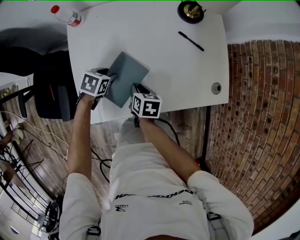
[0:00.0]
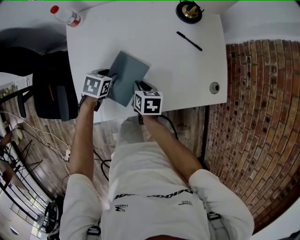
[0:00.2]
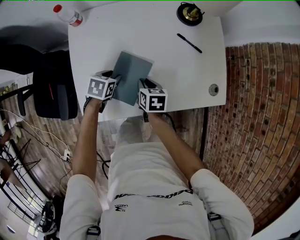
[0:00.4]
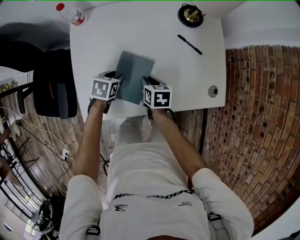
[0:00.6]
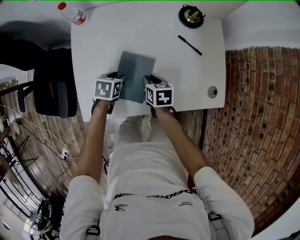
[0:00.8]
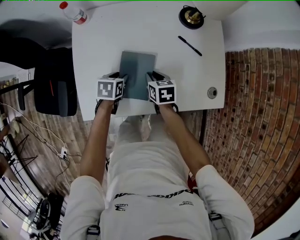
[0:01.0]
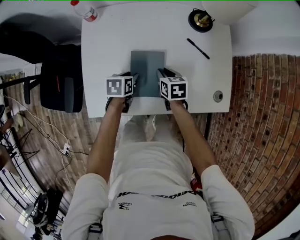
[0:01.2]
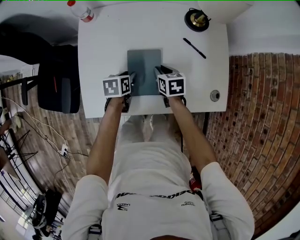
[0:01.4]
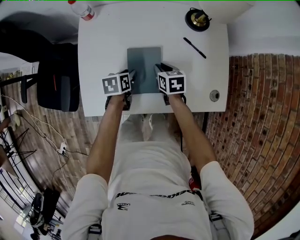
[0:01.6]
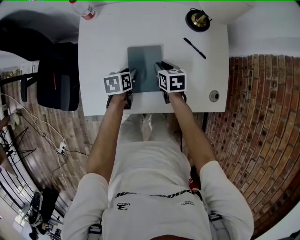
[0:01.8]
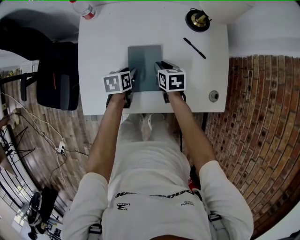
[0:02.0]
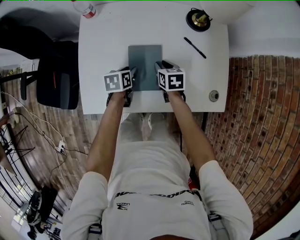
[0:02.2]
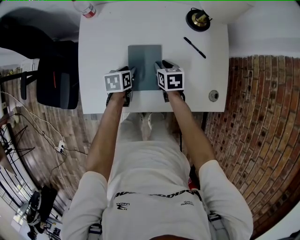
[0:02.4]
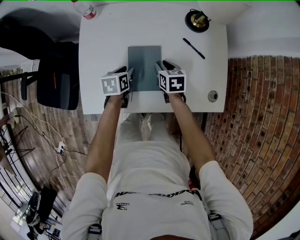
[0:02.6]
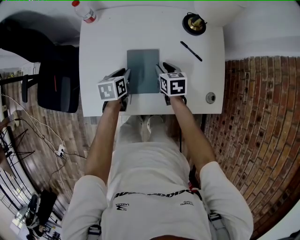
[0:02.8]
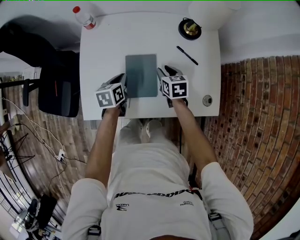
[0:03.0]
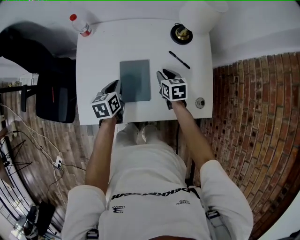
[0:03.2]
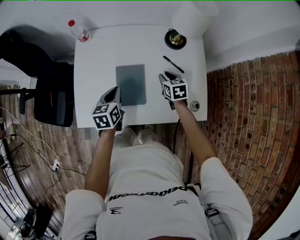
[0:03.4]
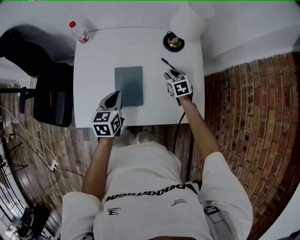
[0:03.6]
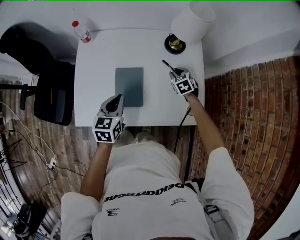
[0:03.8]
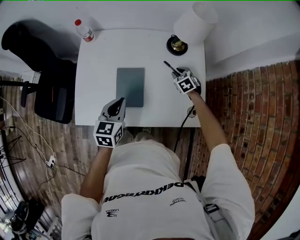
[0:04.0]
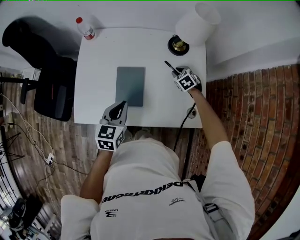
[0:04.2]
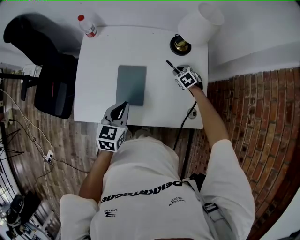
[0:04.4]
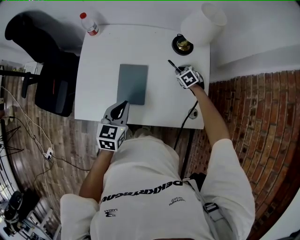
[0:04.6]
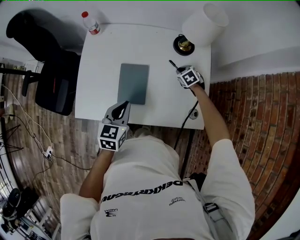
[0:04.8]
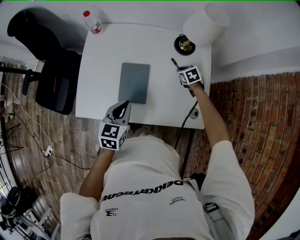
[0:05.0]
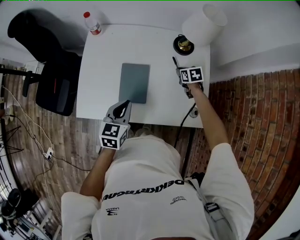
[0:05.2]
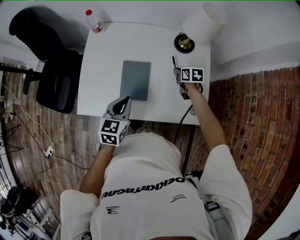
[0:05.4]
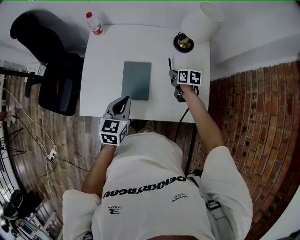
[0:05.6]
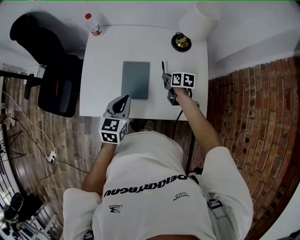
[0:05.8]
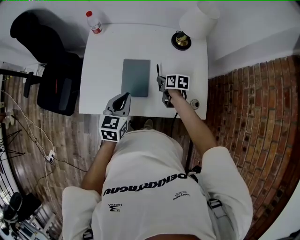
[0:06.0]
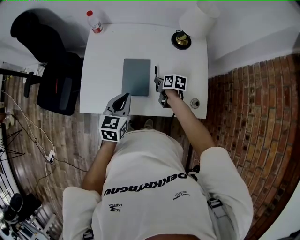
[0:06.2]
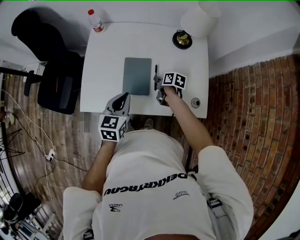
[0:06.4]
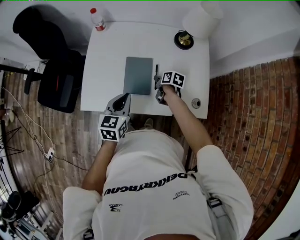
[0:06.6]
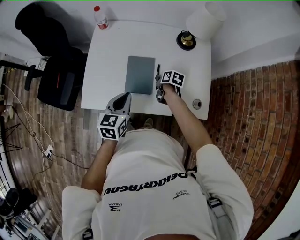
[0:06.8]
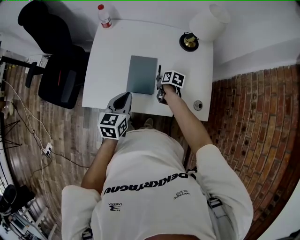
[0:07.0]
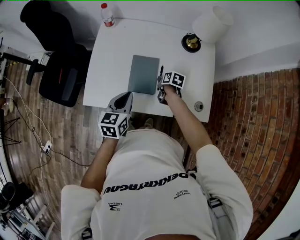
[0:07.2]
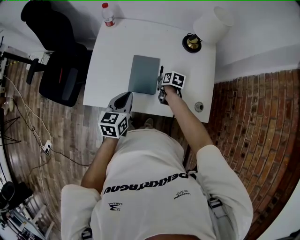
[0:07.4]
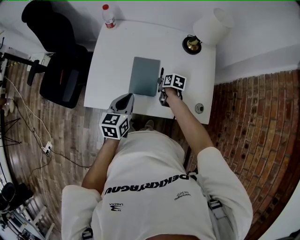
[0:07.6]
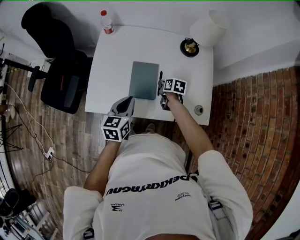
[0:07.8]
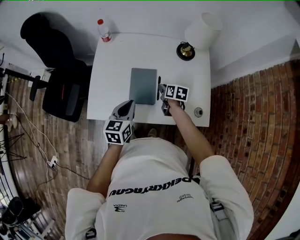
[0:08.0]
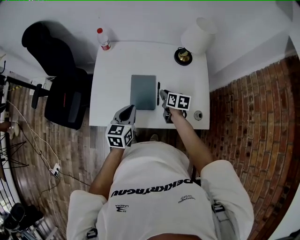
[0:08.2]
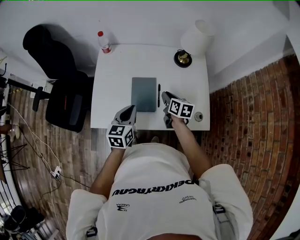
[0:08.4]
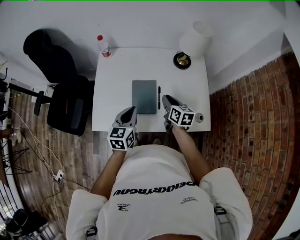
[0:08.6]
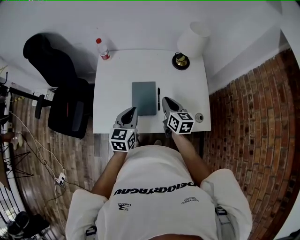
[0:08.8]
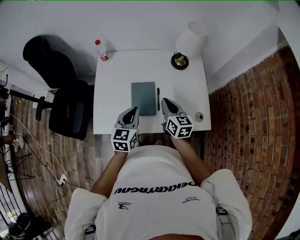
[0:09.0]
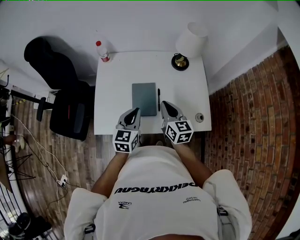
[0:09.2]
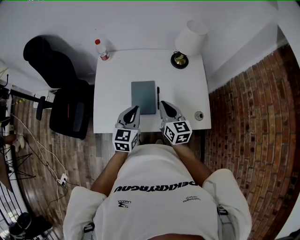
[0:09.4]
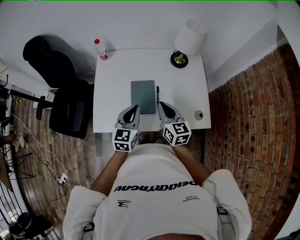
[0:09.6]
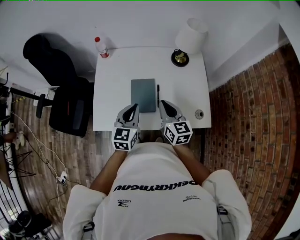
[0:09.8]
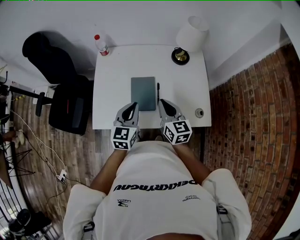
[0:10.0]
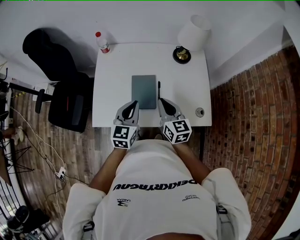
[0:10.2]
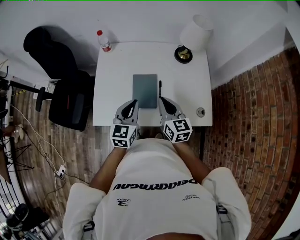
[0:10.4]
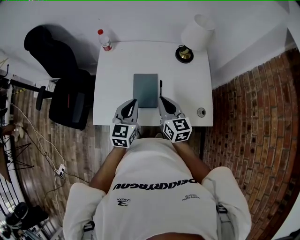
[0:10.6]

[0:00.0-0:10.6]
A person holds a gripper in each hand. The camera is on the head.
0.0 to 1.6 s: The left gripper travels to the right by some 5 cm, and swivels roughly 40 degrees. The right gripper goes about 10 cm forward and to the right, and turns by some 30 degrees.
1.6 to 3.0 s: The right gripper ends up about 5 cm from where it was; the left gripper shifts about 5 cm upward, and closes its fingers.
3.0 to 4.6 s: The right gripper shifts roughly 15 cm to the right and forward, and turns by approximately 40 degrees. Meanwhile the left gripper heads upward, backward and to the right, covering about 15 cm, and swivels some 20 degrees.
4.6 to 6.0 s: The right gripper shifts some 15 cm to the left and backward, and rolls clockwise, seen from behind, by approximately 60 degrees.
6.0 to 7.6 s: The right gripper ends up about 5 cm from where it was.
7.6 to 9.0 s: The right gripper goes about 25 cm upward, and tilts its fingers roughly 40 degrees upward; the left gripper moves upward, about 5 cm.
9.0 to 10.6 s: There are only small adjustments of the grippers.

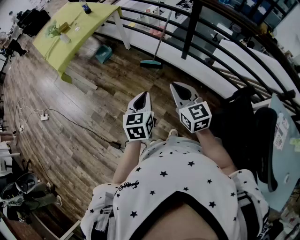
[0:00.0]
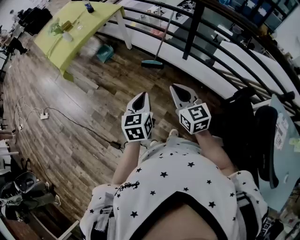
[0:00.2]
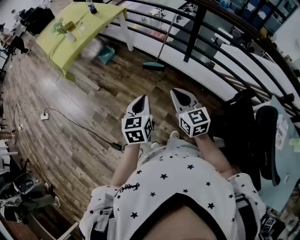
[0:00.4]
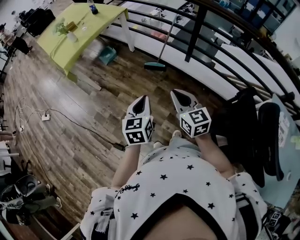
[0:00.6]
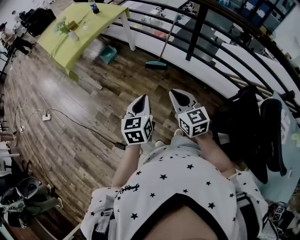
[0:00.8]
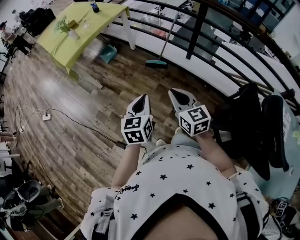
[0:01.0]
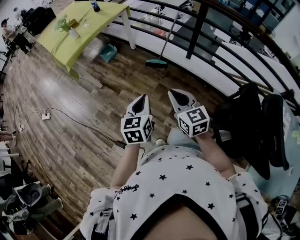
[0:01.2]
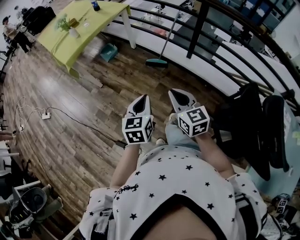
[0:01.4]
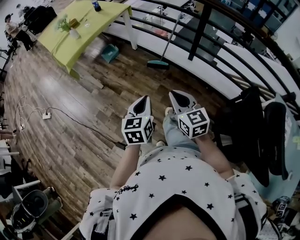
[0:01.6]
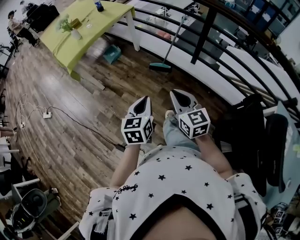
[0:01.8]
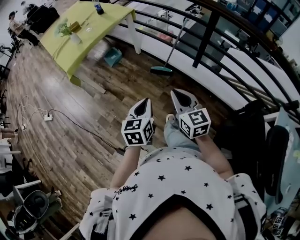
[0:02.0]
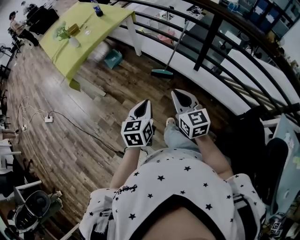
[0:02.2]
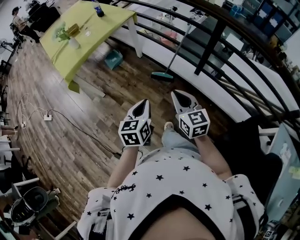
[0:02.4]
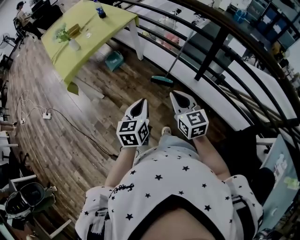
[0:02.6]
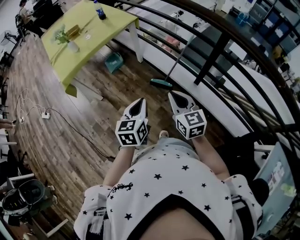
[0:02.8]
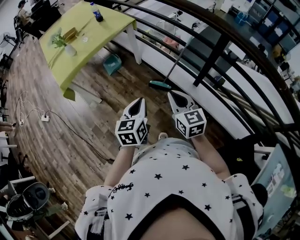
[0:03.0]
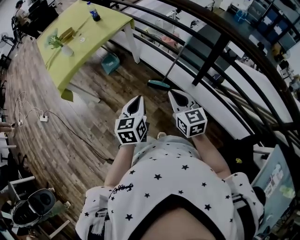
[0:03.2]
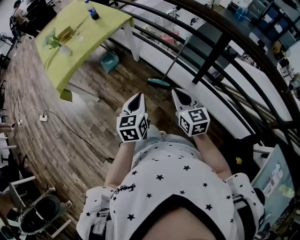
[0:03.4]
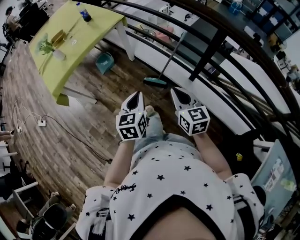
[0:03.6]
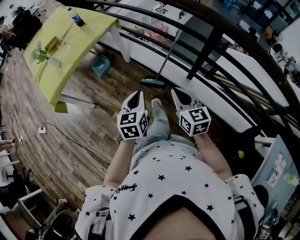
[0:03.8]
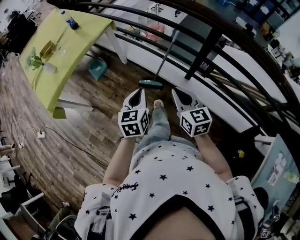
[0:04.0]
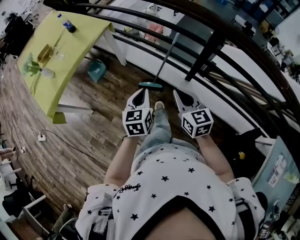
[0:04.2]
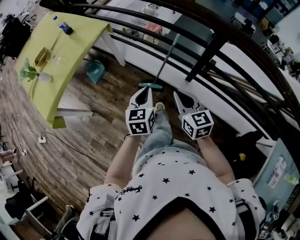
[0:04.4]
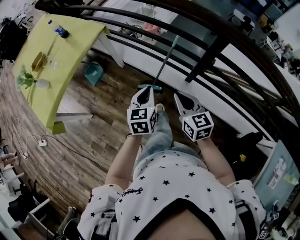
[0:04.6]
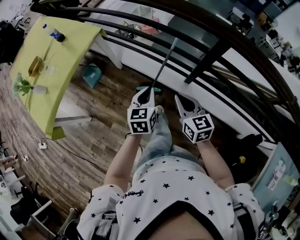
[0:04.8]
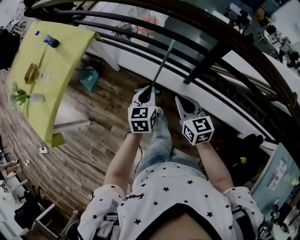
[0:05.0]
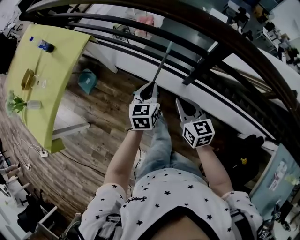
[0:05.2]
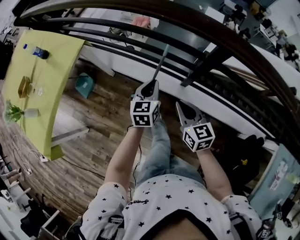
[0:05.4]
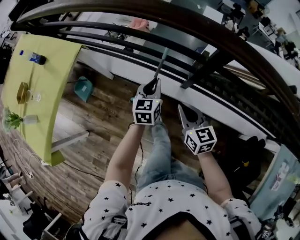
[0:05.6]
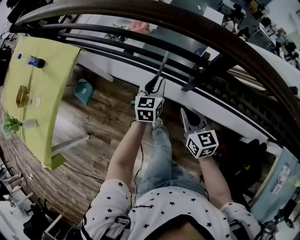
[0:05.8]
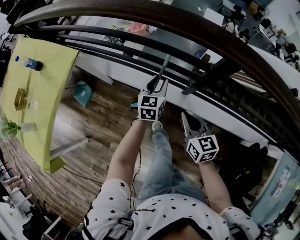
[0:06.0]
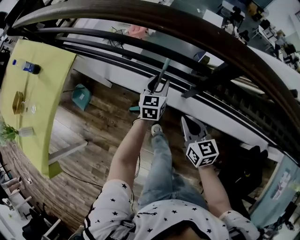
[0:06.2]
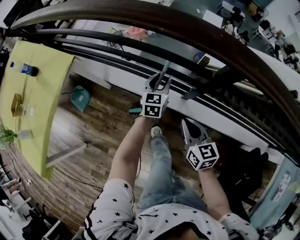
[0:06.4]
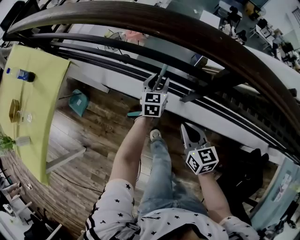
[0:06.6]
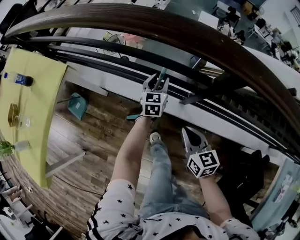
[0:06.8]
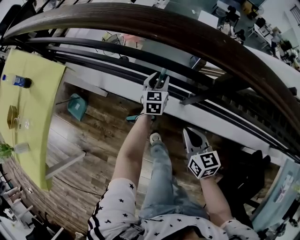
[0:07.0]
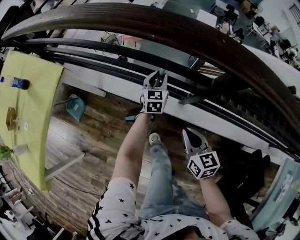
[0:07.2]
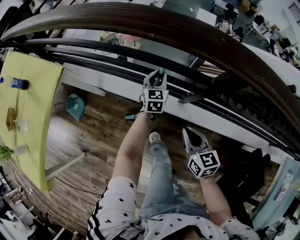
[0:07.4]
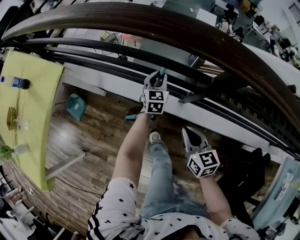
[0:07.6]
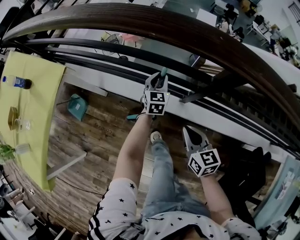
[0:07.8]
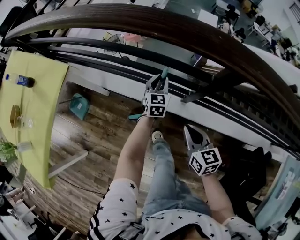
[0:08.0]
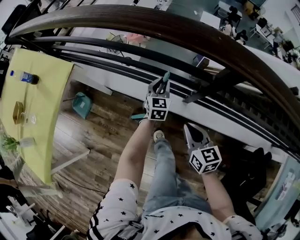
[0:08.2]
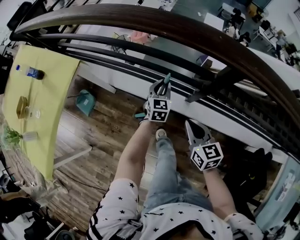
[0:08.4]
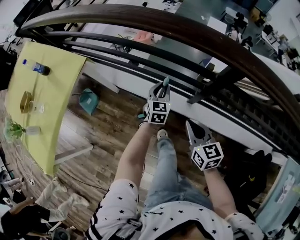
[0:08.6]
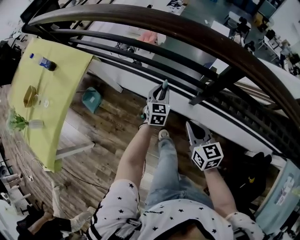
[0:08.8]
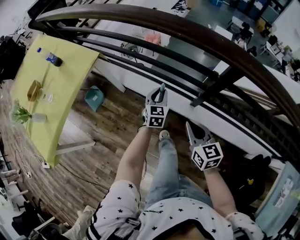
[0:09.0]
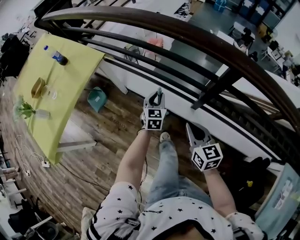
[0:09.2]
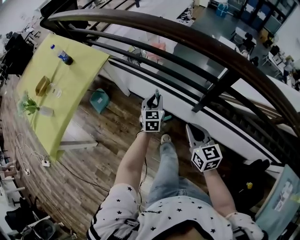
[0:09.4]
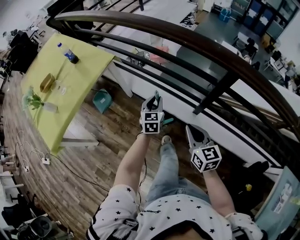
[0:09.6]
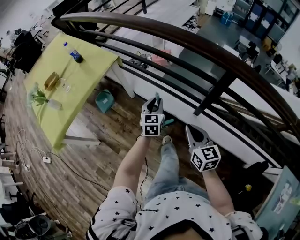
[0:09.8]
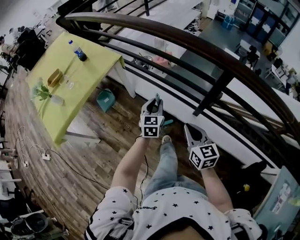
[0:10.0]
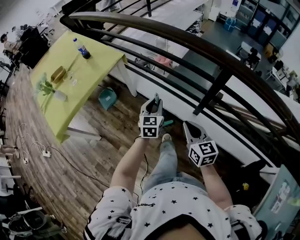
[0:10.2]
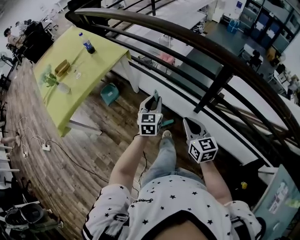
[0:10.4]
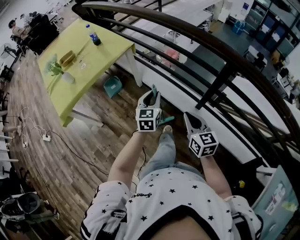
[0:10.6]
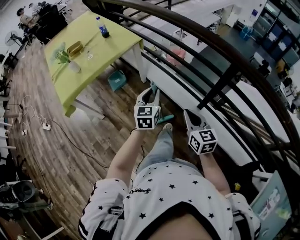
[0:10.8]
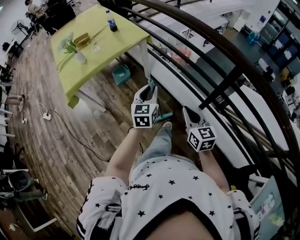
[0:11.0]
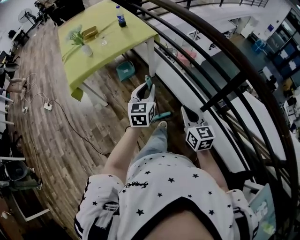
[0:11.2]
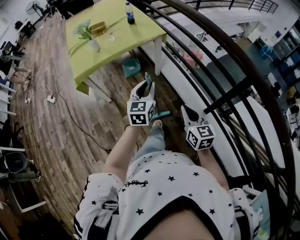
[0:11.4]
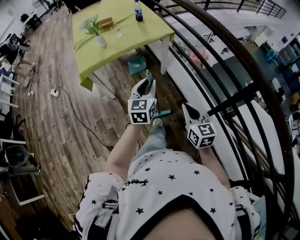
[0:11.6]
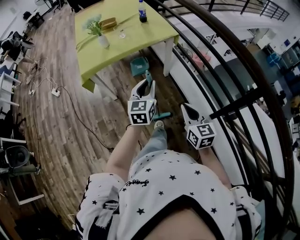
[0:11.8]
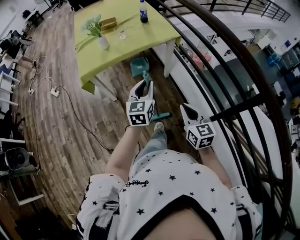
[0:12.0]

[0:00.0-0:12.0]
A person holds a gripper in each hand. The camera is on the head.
0.0 to 1.6 s: The grippers both shift to the left by some 10 cm.
1.6 to 3.0 s: Both grippers move forward, about 30 cm.
3.0 to 4.4 s: The grippers both shift forward and to the right by approximately 20 cm.
4.4 to 6.0 s: The left gripper goes some 35 cm forward, downward and to the right, and opens up; the right gripper moves forward, downward and to the right, some 20 cm.
6.0 to 7.6 s: The left gripper is displaced forward and downward by roughly 15 cm. Meanwhile the right gripper heads downward, covering some 5 cm.
7.6 to 9.0 s: The left gripper moves backward, to the left and upward, approximately 20 cm. The right gripper moves upward and to the left, approximately 10 cm.
9.0 to 10.4 s: The right gripper goes some 15 cm backward and upward. The left gripper is displaced backward, upward and to the left by roughly 25 cm.
10.4 to 12.0 s: The left gripper ends up roughly 25 cm from where it was, and swivels approximately 30 degrees; the right gripper moves about 15 cm, and rotates approximately 30 degrees.

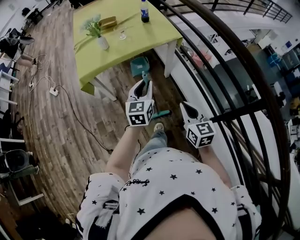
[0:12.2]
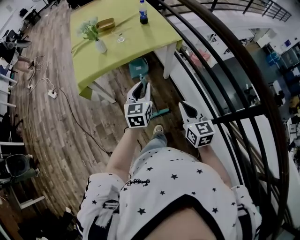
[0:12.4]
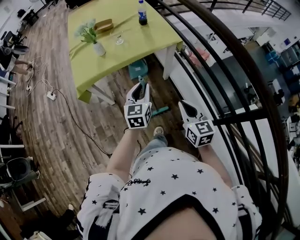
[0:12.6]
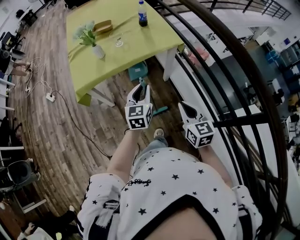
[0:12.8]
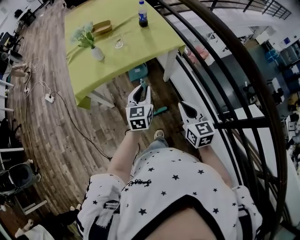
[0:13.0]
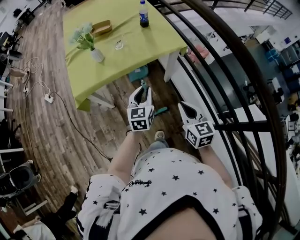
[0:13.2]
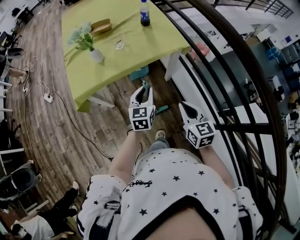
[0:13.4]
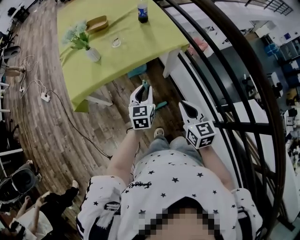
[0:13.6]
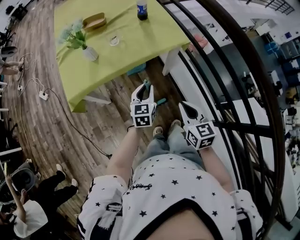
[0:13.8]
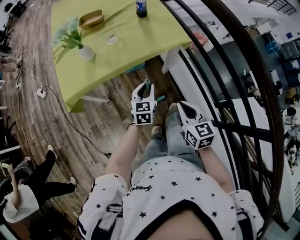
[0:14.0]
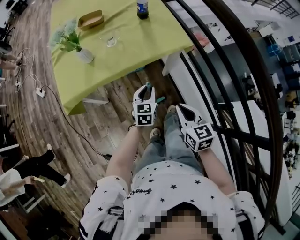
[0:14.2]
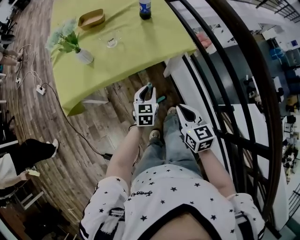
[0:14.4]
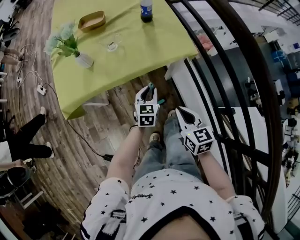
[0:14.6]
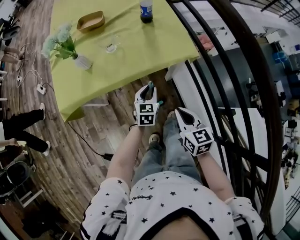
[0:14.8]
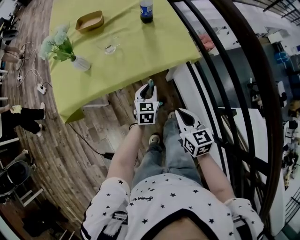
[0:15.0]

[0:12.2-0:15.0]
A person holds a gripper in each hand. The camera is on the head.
12.2 to 13.6 s: The left gripper is displaced forward and downward by roughly 20 cm, while the right gripper shifts some 15 cm forward.
13.6 to 15.0 s: The right gripper goes approximately 15 cm forward and downward. The left gripper heads forward, downward and to the right, covering about 20 cm.
